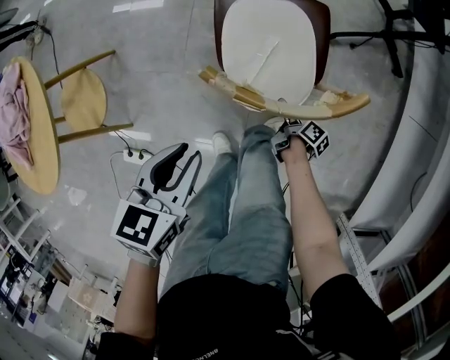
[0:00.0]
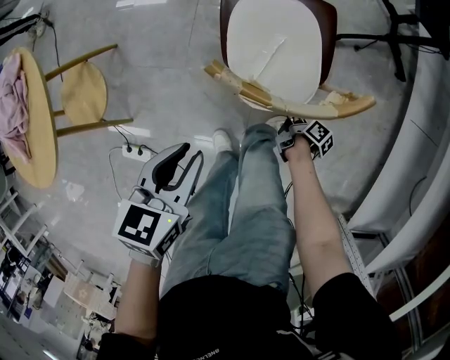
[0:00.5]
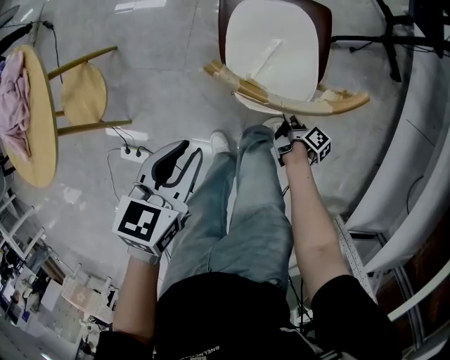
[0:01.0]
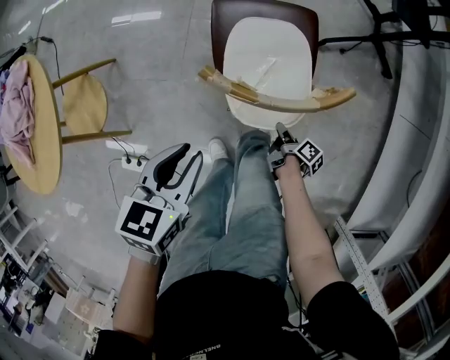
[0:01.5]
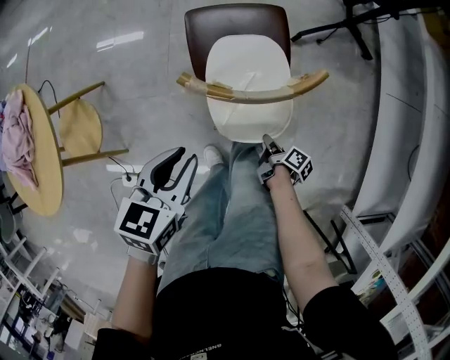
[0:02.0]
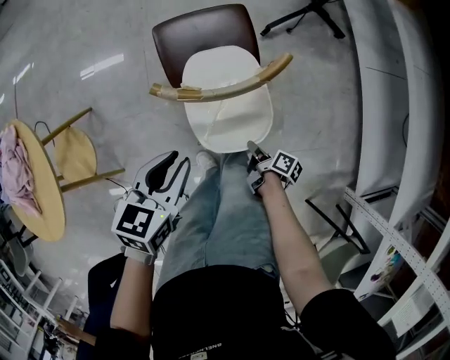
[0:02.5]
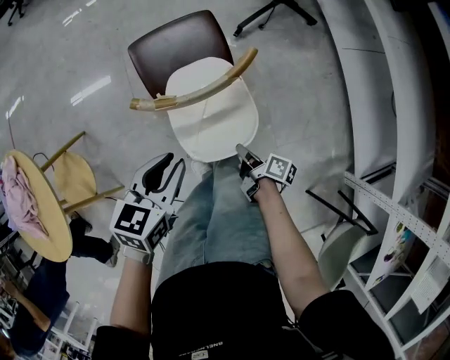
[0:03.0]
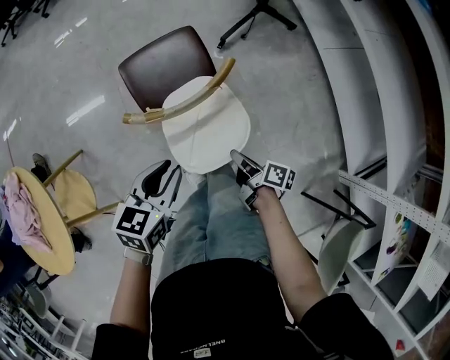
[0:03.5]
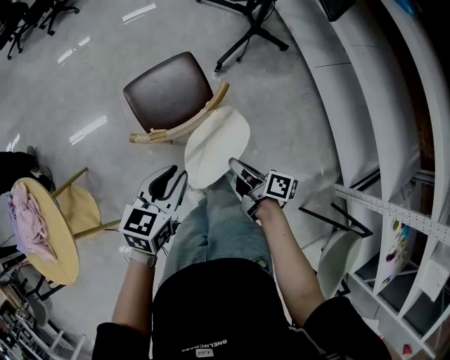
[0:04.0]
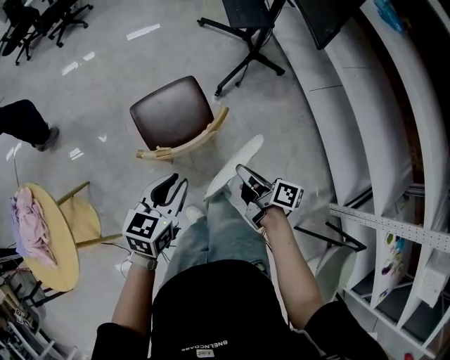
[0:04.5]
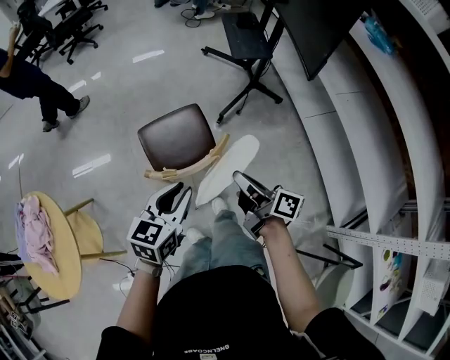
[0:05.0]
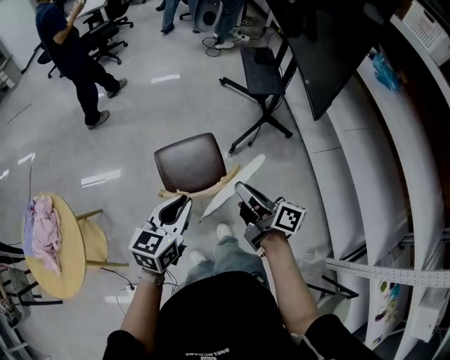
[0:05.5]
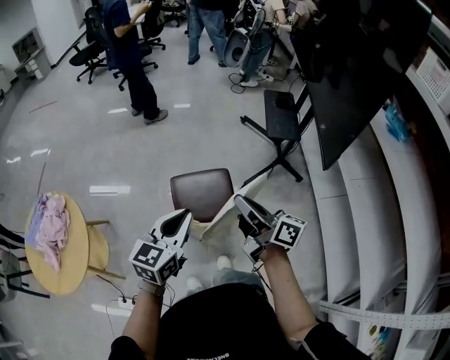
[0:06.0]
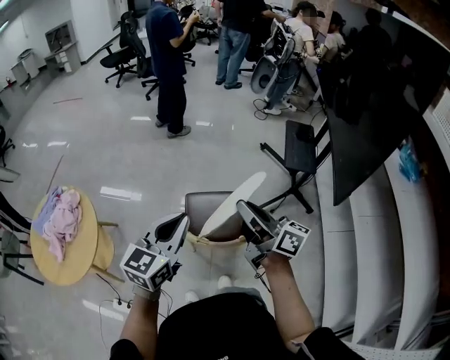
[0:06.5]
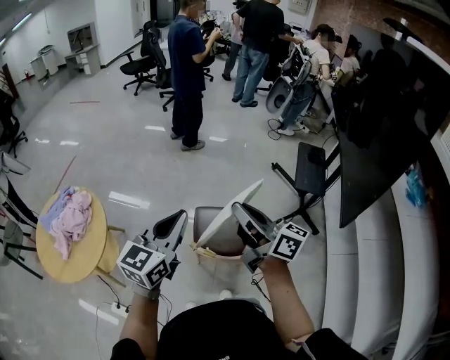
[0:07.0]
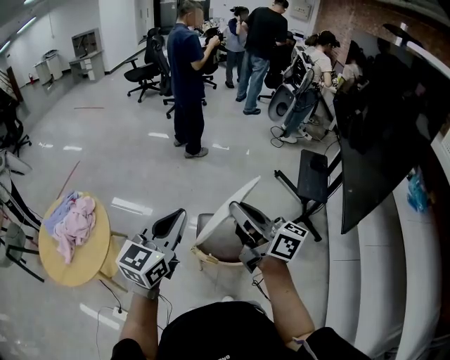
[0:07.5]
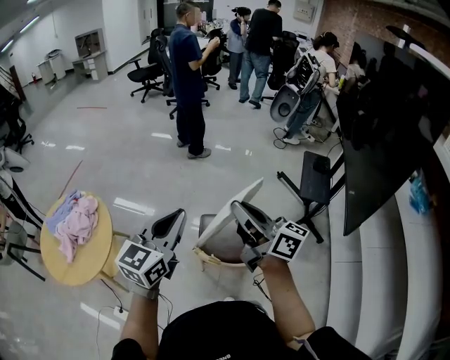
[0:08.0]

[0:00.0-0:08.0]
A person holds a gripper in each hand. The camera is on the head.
0:00.0 to 0:02.0: The right gripper heads backward and upward, covering approximately 15 cm, and closes.
0:02.0 to 0:04.0: The left gripper is displaced to the right and upward by about 15 cm, and changes its angle by some 20 degrees. Meanwhile the right gripper shifts about 25 cm upward, and swivels about 30 degrees.
0:04.0 to 0:06.0: The right gripper goes some 35 cm upward and forward, and rotates about 40 degrees. Meanwhile the left gripper heads upward and forward, covering roughly 20 cm, and swivels roughly 30 degrees.
0:06.0 to 0:08.0: Both grippers move upward, to the left and forward, roughly 20 cm. The left gripper swivels about 20 degrees. The right gripper swivels about 20 degrees.

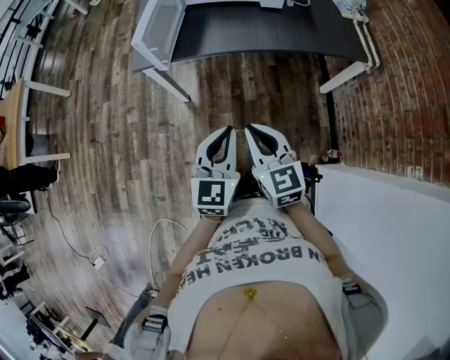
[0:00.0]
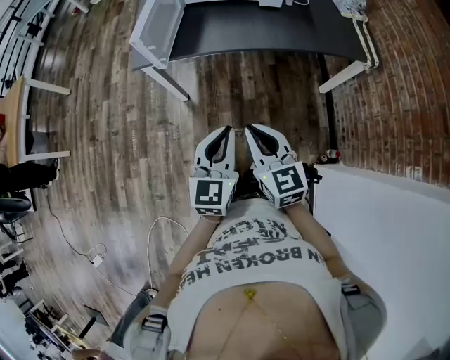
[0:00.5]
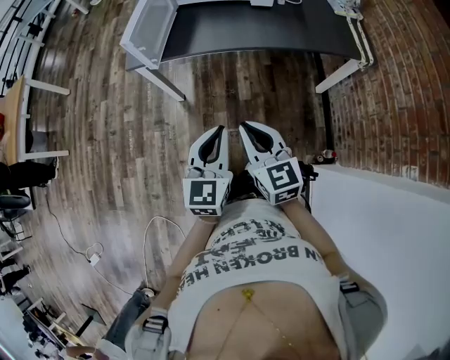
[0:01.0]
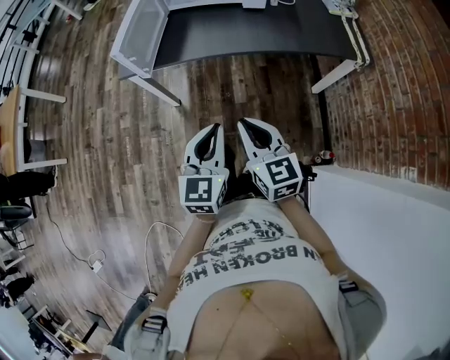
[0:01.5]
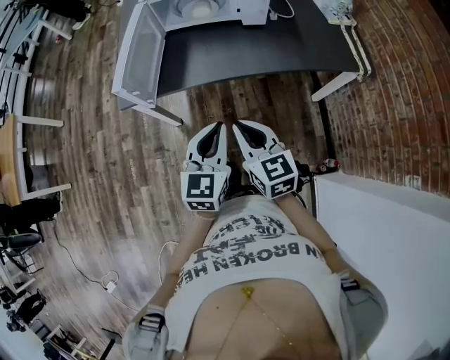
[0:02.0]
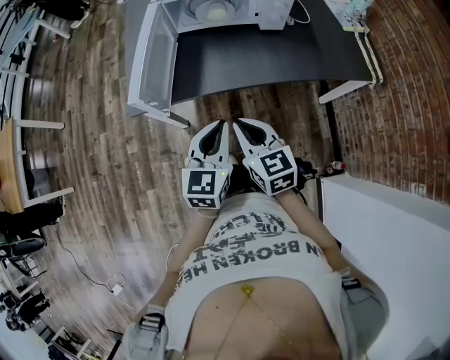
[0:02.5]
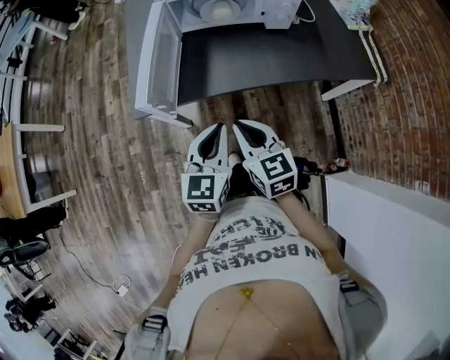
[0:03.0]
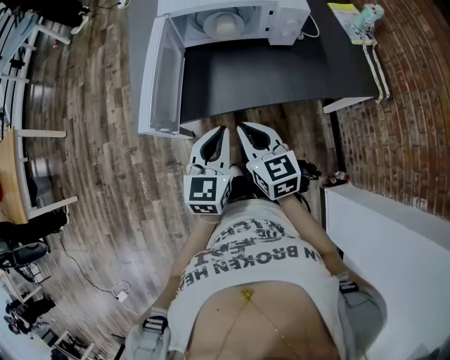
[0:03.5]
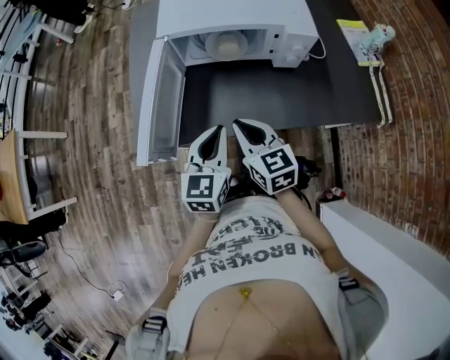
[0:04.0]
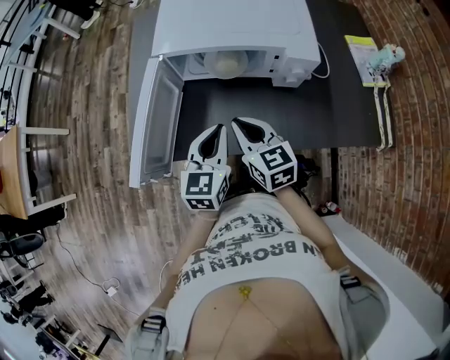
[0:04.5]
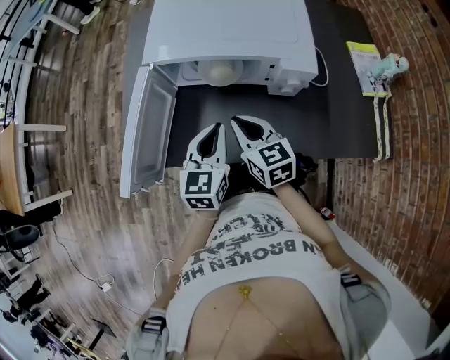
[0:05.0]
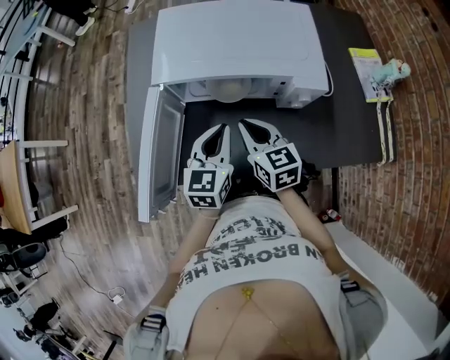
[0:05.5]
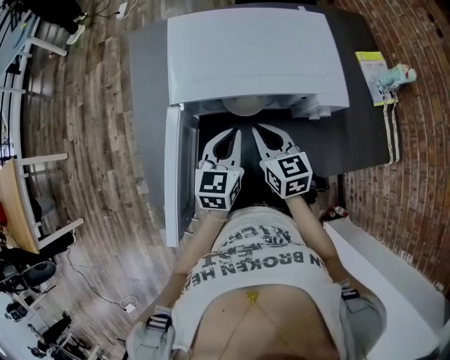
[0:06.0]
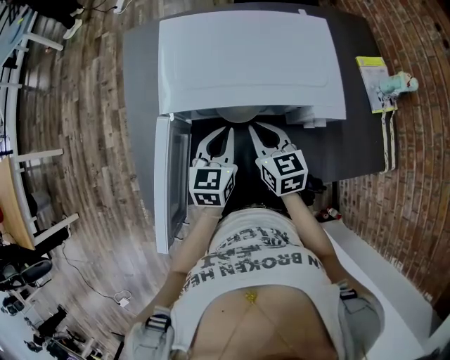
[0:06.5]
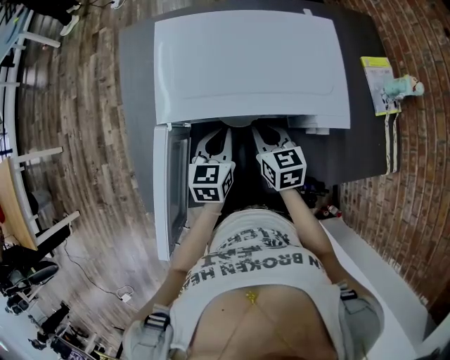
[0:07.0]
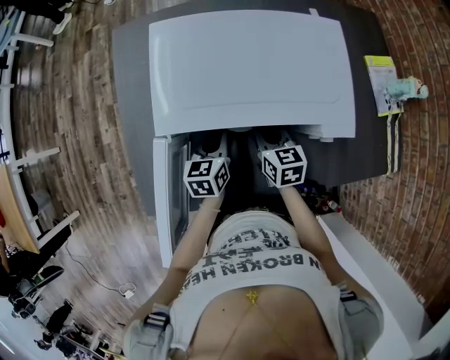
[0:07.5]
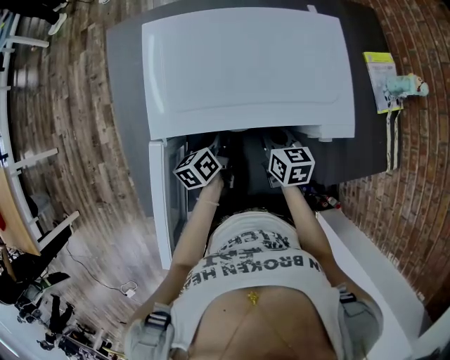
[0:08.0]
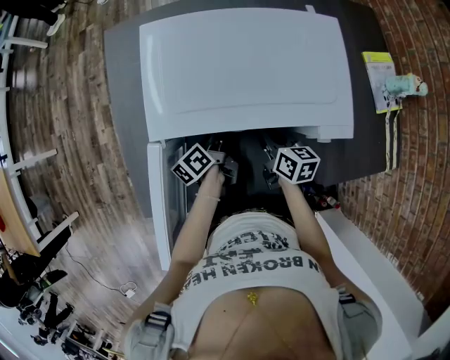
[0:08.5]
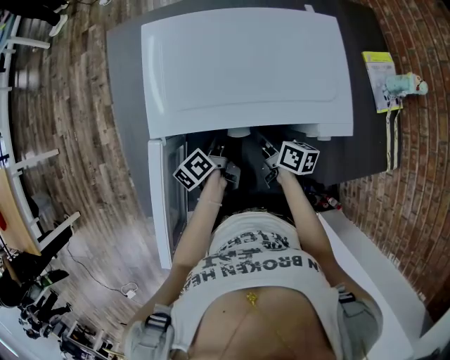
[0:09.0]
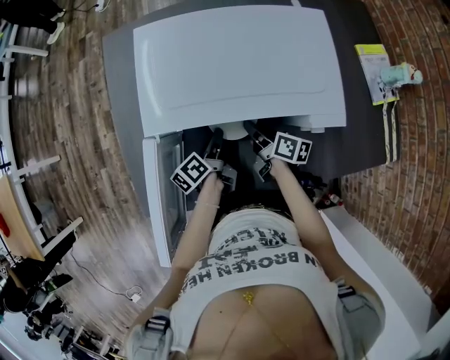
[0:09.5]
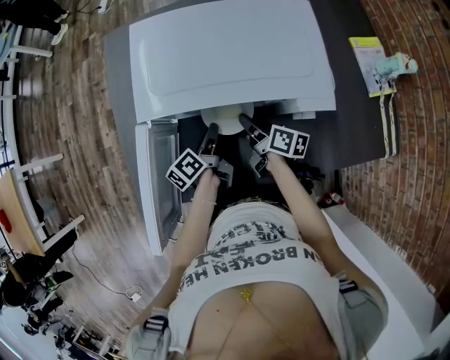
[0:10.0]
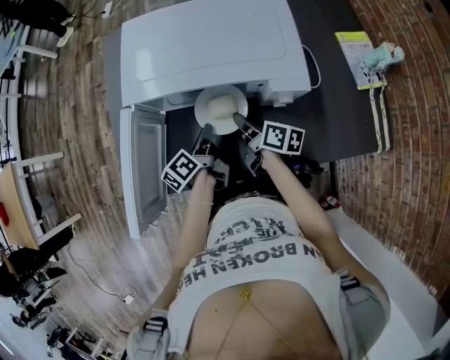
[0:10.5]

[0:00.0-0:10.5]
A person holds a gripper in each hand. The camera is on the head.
0:00.0 to 0:02.0: The two grippers go roughly 15 cm forward.
0:02.0 to 0:04.0: Both grippers travel together forward, approximately 25 cm.
0:04.0 to 0:06.5: The two grippers go some 25 cm forward.
0:06.5 to 0:08.5: The left gripper moves downward and forward, some 15 cm, and twists about 60 degrees counterclockwise, seen from behind. Meanwhile the right gripper heads downward and to the right, covering about 10 cm, and rotates approximately 30 degrees.
0:08.5 to 0:10.5: The left gripper travels backward and upward by approximately 10 cm, while the right gripper moves backward, about 5 cm, and rotates some 20 degrees.

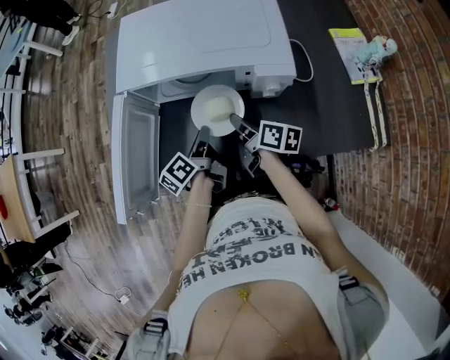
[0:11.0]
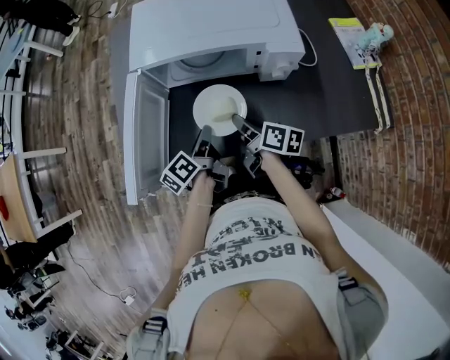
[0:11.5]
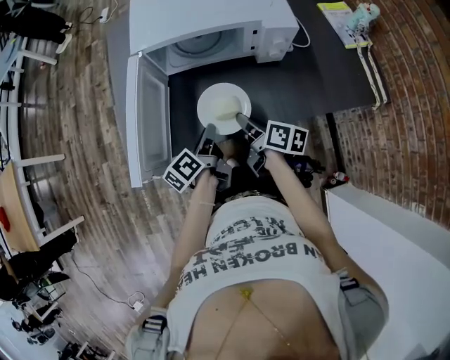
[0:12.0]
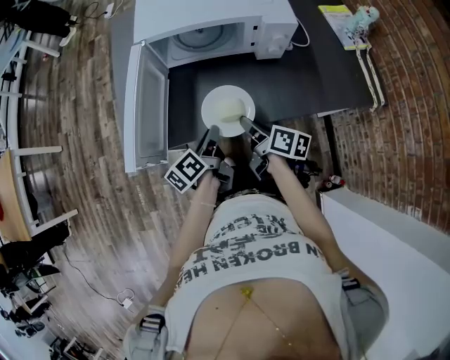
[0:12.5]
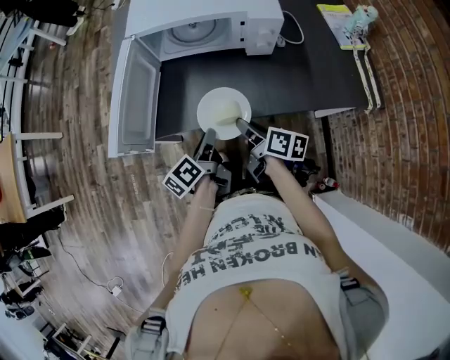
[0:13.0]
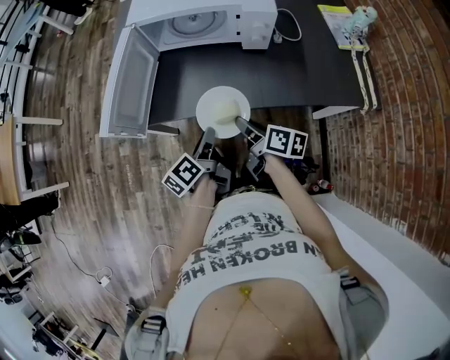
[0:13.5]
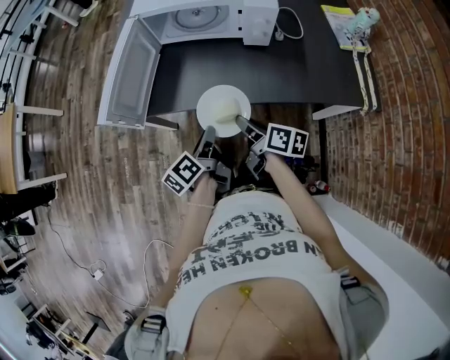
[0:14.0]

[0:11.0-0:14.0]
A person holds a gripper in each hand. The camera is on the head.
0:11.0 to 0:12.5: Both grippers travel together backward, about 15 cm.
0:12.5 to 0:14.0: The grippers both shift backward and to the right by some 10 cm.

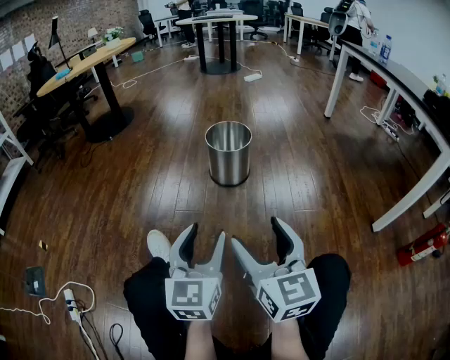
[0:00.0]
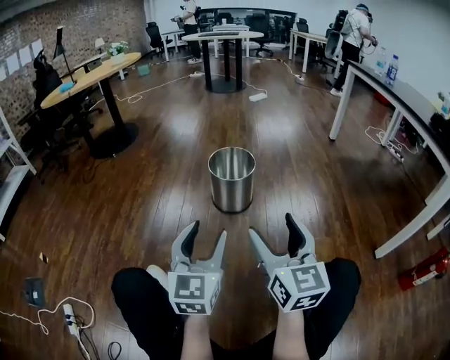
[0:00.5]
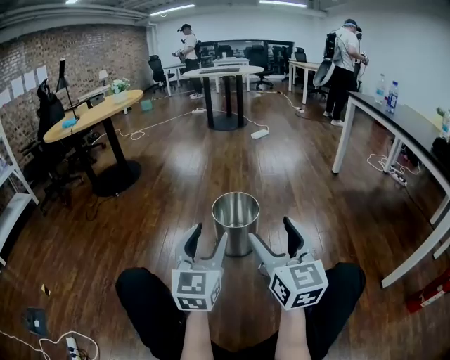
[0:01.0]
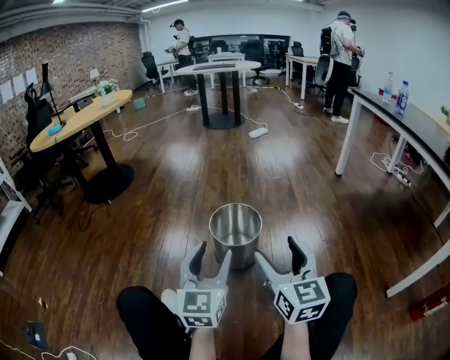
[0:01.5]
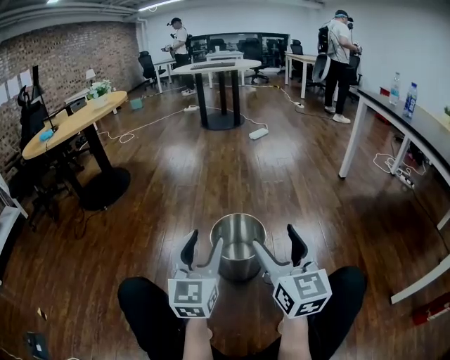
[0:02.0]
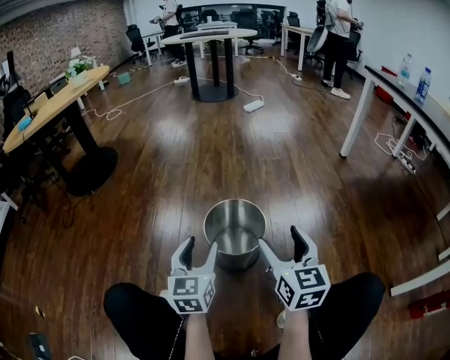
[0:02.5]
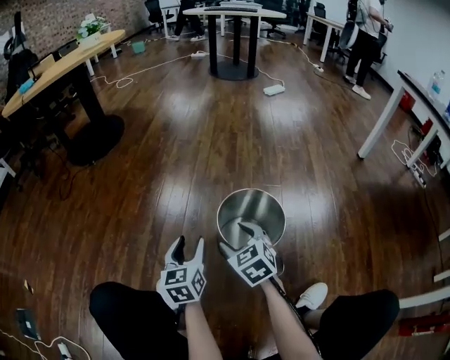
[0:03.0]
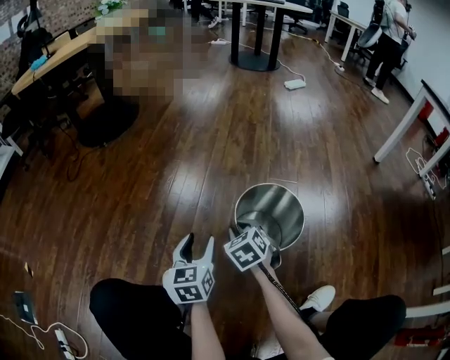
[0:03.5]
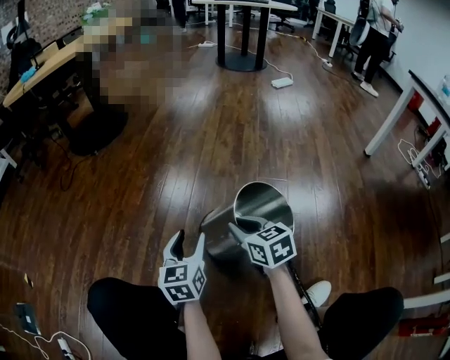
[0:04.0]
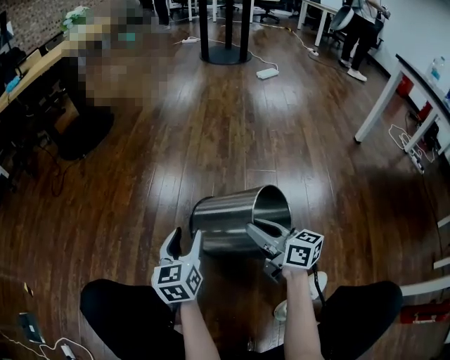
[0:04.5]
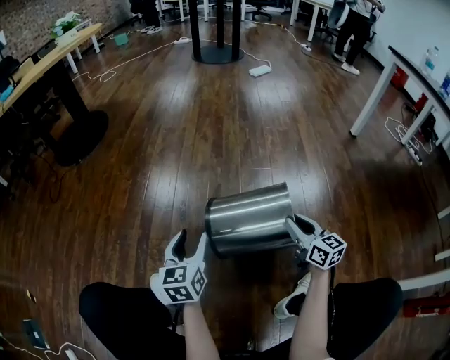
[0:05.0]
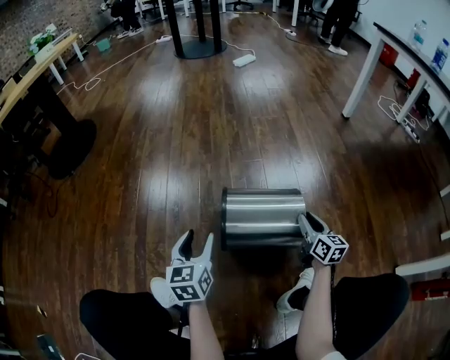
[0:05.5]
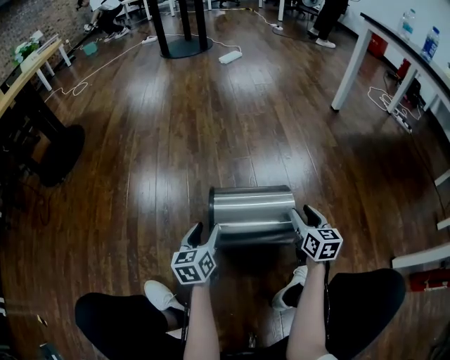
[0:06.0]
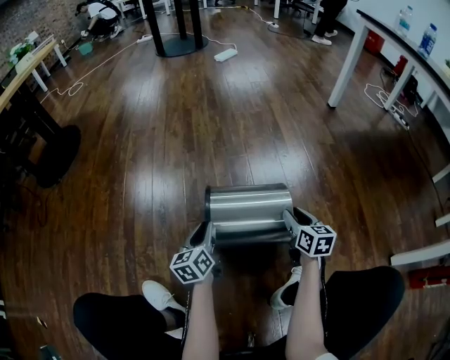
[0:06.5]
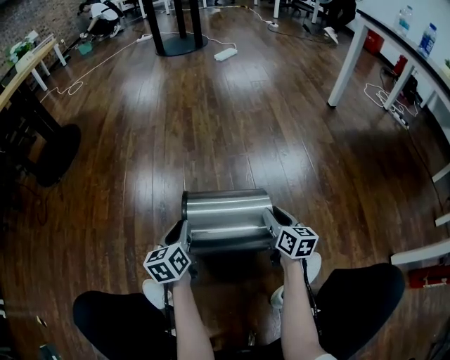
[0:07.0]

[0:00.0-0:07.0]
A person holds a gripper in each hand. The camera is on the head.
0:00.0 to 0:02.0: The two grippers go roughly 40 cm forward.
0:02.0 to 0:03.5: The left gripper heads downward and to the left, covering roughly 30 cm, and swivels approximately 40 degrees, while the right gripper travels downward, forward and to the left by roughly 40 cm, tilts its fingers some 50 degrees downward, and closes up.
0:03.5 to 0:05.0: The right gripper shifts about 25 cm to the right, and points its fingers approximately 40 degrees further upward. Meanwhile the left gripper goes roughly 5 cm to the right.
0:05.0 to 0:07.0: The left gripper is displaced downward and forward by about 10 cm, moves approximately 10 cm to the right and comes back, and closes its fingers. The right gripper heads downward, covering about 10 cm, moves approximately 10 cm to the right and comes back, and changes its angle by approximately 20 degrees.
